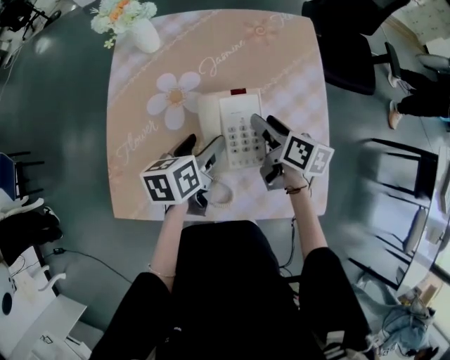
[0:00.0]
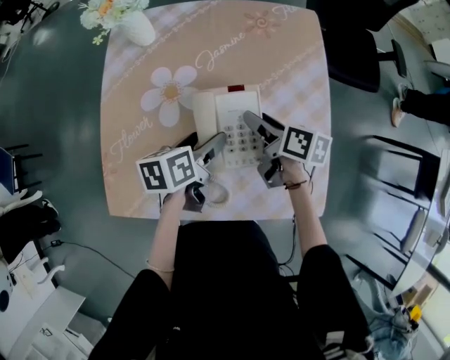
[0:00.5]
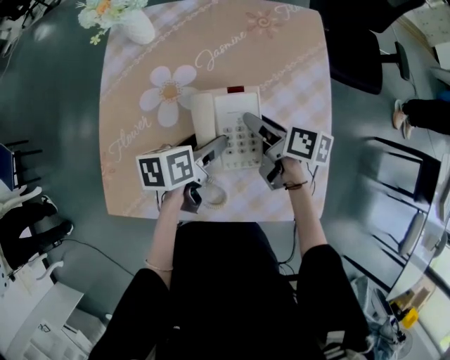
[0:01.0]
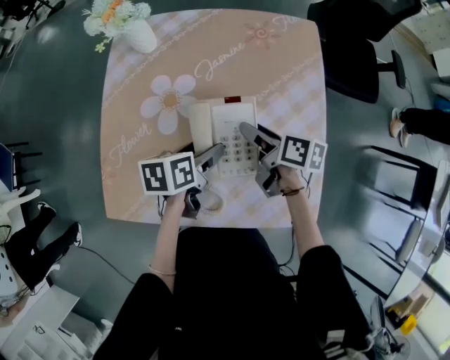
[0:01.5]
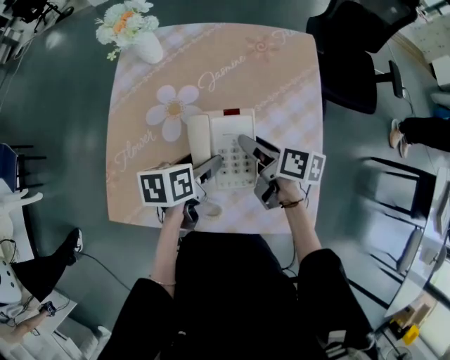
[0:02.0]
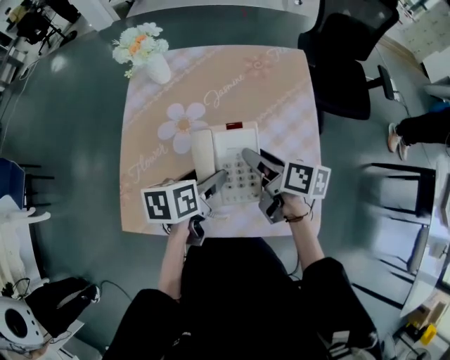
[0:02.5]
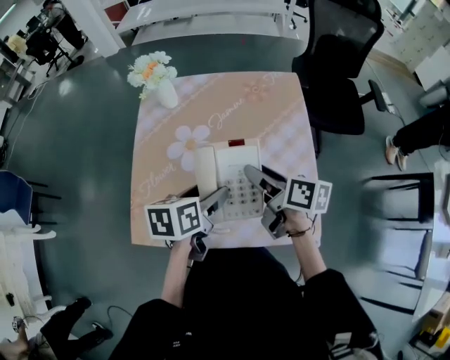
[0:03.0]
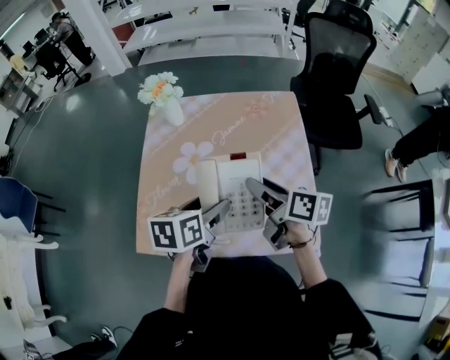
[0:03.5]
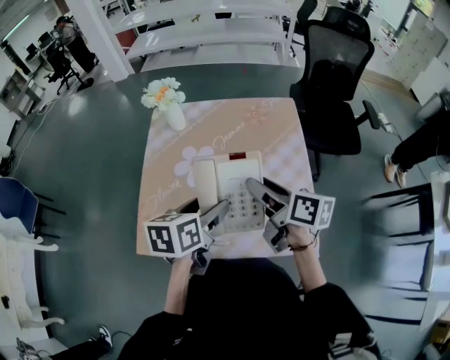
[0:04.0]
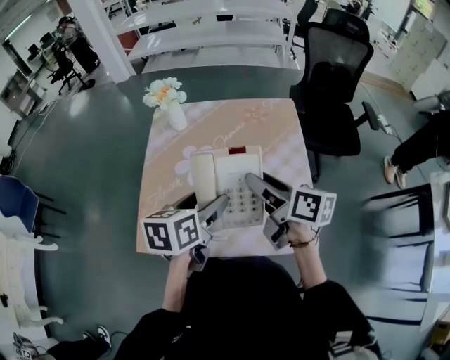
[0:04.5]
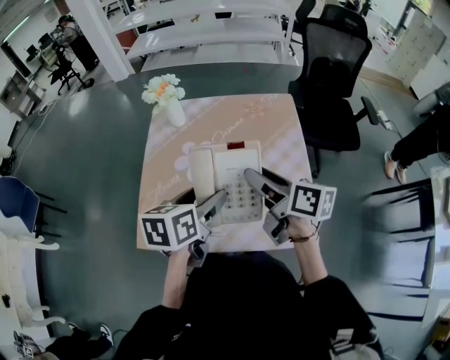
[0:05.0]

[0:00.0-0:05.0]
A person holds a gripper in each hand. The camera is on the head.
0:00.0 to 0:02.5: The right gripper moves upward, about 5 cm; the left gripper changes place by some 5 cm.
0:02.5 to 0:05.0: The grippers both shift upward by about 15 cm.

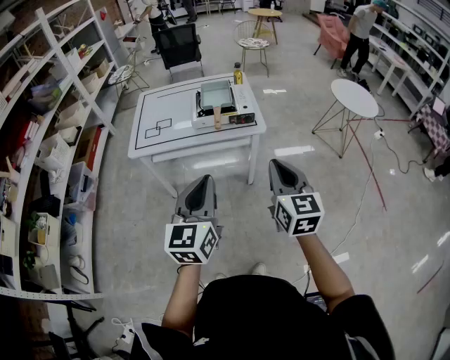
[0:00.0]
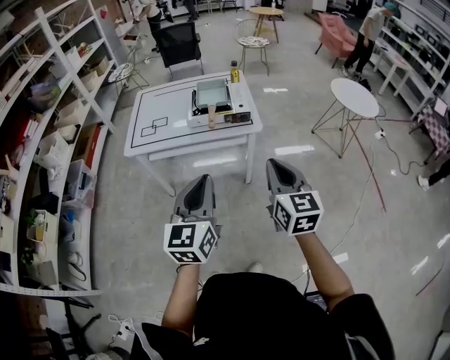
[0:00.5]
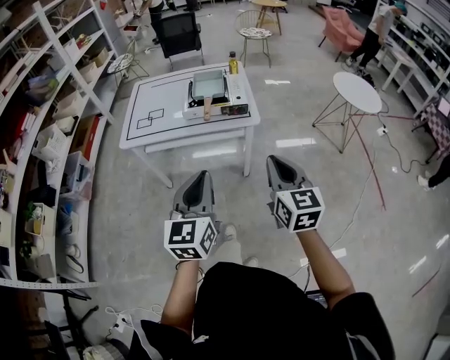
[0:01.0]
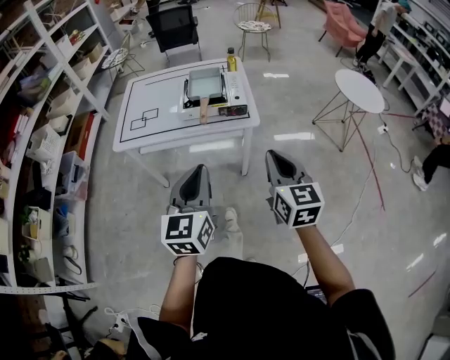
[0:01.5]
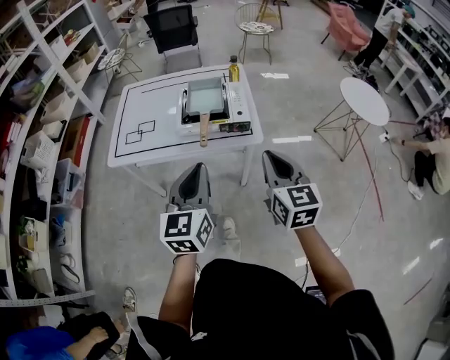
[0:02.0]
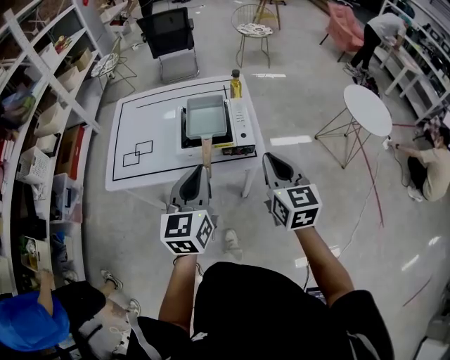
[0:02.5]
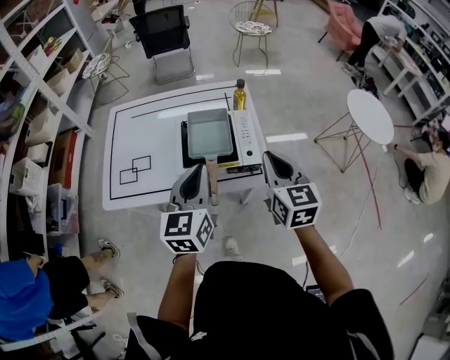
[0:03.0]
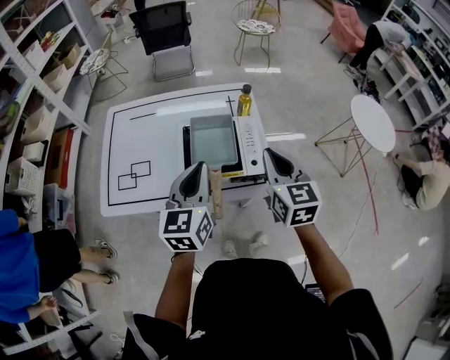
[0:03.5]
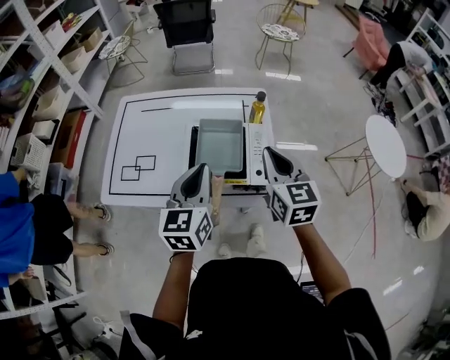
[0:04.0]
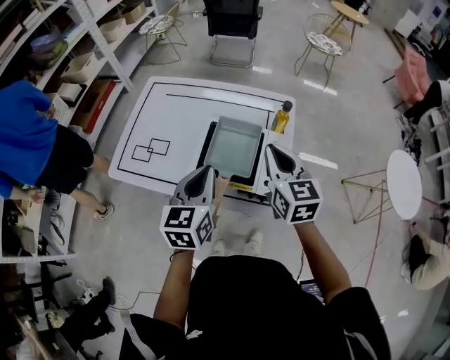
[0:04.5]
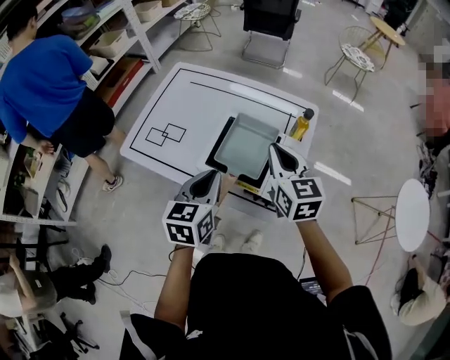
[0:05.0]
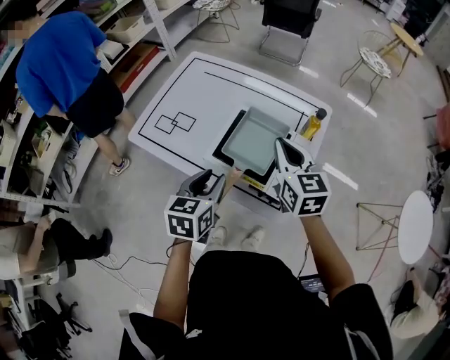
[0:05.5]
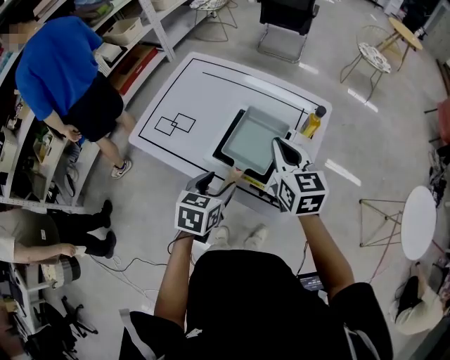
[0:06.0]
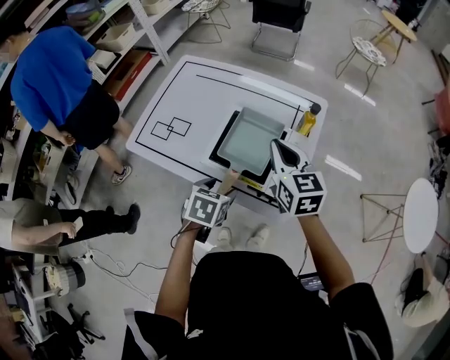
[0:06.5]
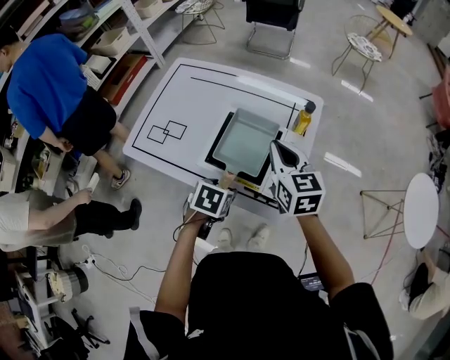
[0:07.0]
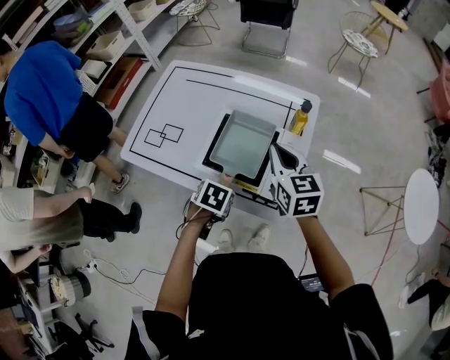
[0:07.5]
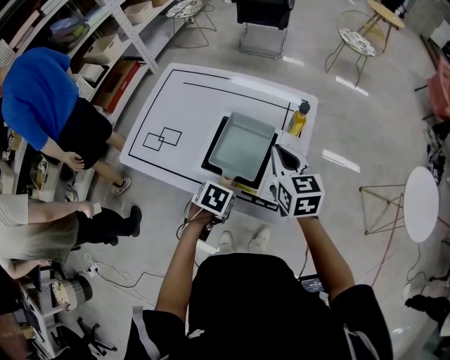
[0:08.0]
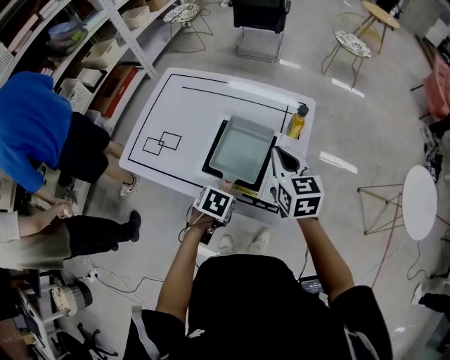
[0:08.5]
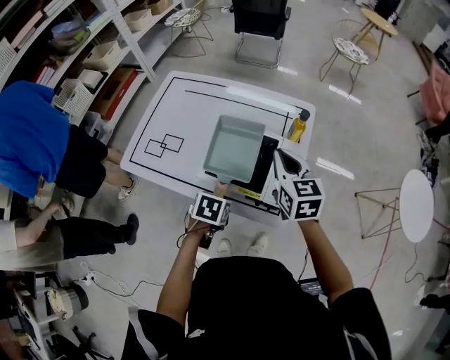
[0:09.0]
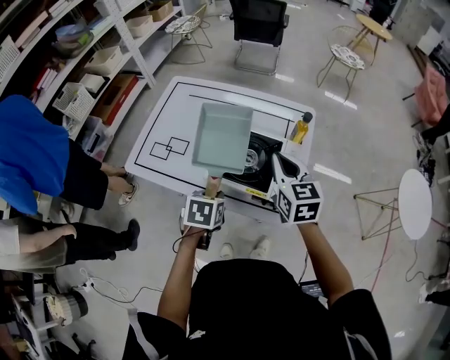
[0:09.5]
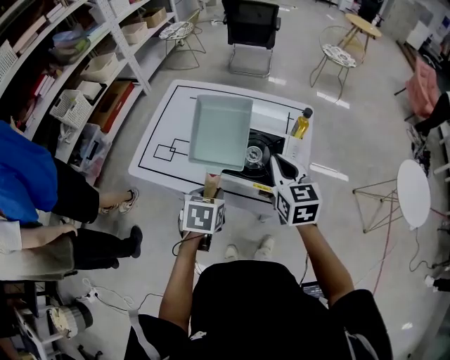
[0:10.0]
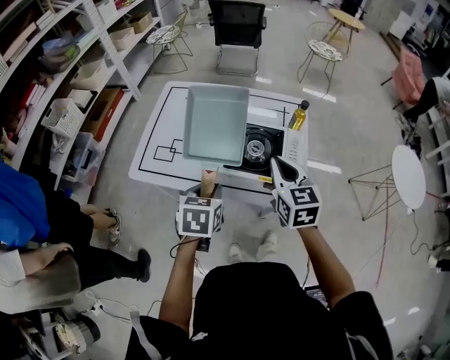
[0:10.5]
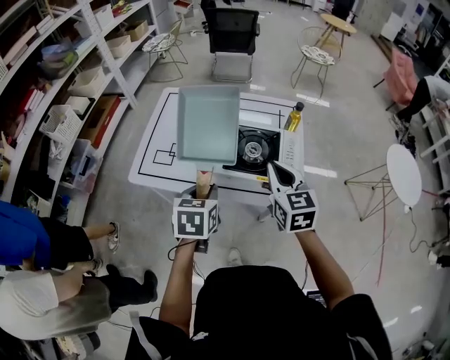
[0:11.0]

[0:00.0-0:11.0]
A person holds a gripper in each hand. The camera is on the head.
0:00.0 to 0:02.0: Both grippers travel together forward, some 20 cm.
0:02.0 to 0:03.5: Both grippers travel together forward, about 30 cm.
0:03.5 to 0:05.5: The left gripper is displaced downward by roughly 10 cm, turns by approximately 30 degrees, and opens. The right gripper moves about 15 cm, and swivels about 30 degrees.
0:05.5 to 0:07.5: The left gripper goes about 15 cm downward, points its fingers some 40 degrees further downward, and opens, then closes again.
0:07.5 to 0:09.0: There are only small adjustments of the grippers.
0:09.0 to 0:11.0: The left gripper shifts some 20 cm upward and to the left, and swivels some 30 degrees. Meanwhile the right gripper moves backward and to the left, roughly 15 cm.

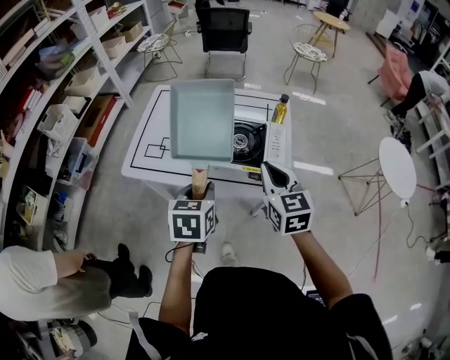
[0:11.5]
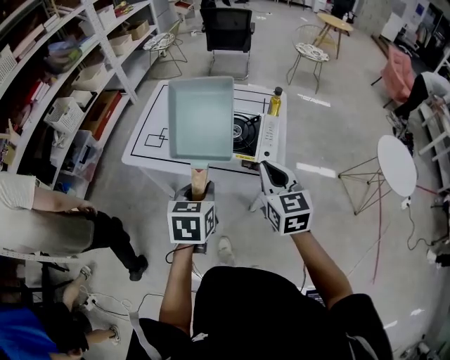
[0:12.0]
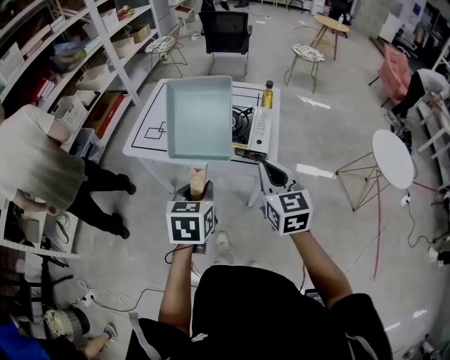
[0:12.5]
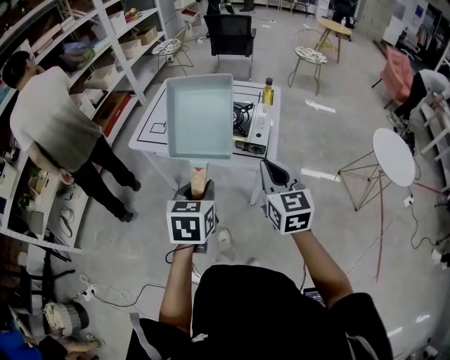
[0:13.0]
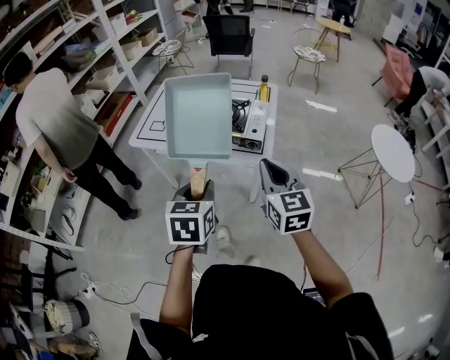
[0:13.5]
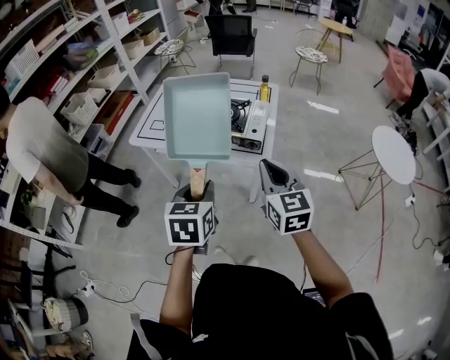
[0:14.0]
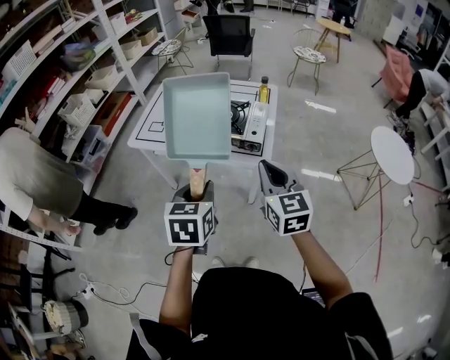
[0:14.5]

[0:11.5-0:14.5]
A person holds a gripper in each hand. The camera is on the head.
0:11.5 to 0:13.0: The grippers both shift backward by roughly 20 cm.
0:13.0 to 0:14.5: There are only small adjustments of the grippers.

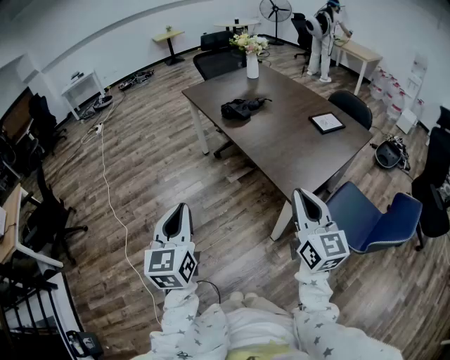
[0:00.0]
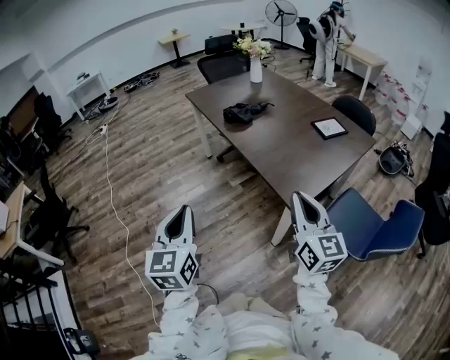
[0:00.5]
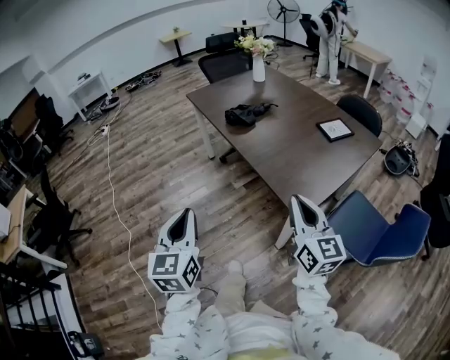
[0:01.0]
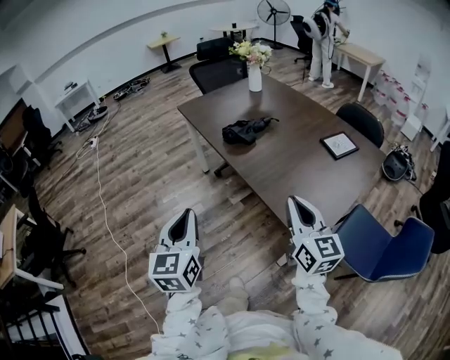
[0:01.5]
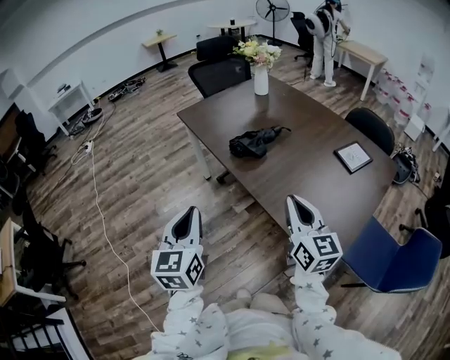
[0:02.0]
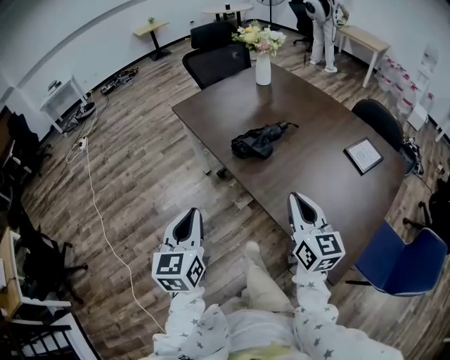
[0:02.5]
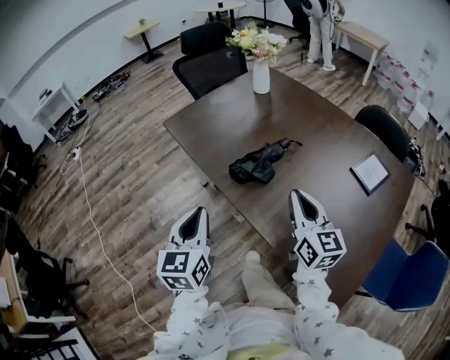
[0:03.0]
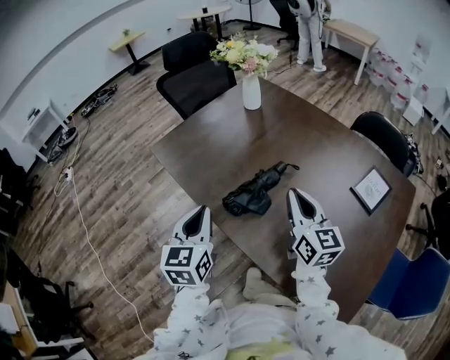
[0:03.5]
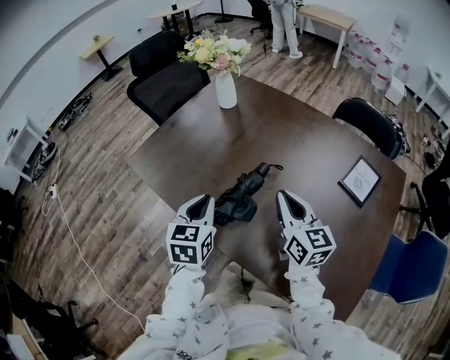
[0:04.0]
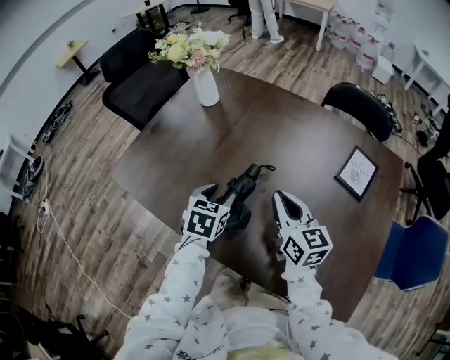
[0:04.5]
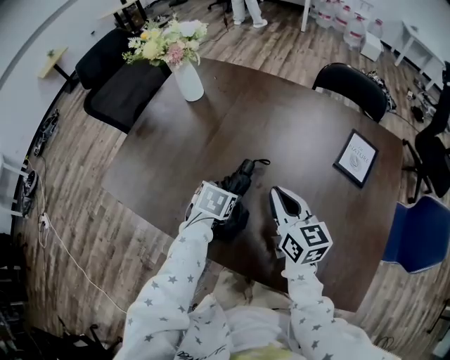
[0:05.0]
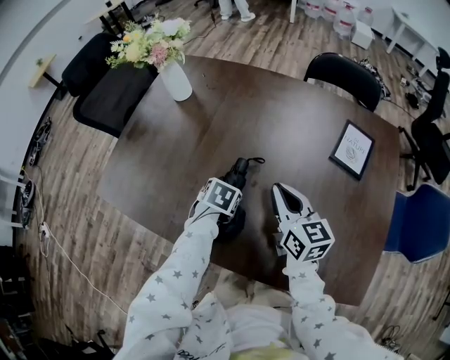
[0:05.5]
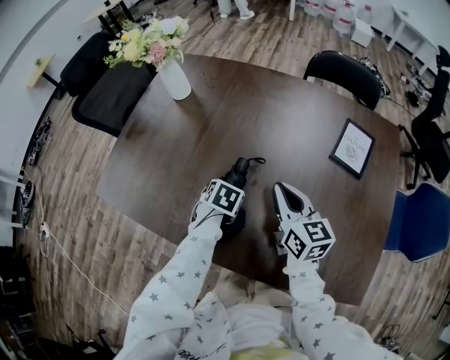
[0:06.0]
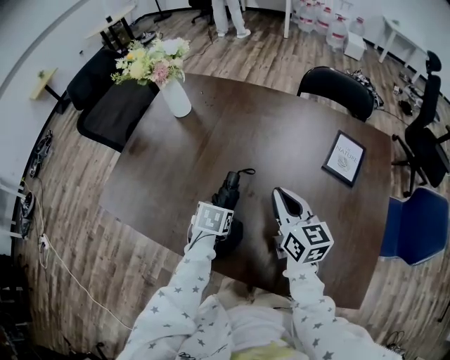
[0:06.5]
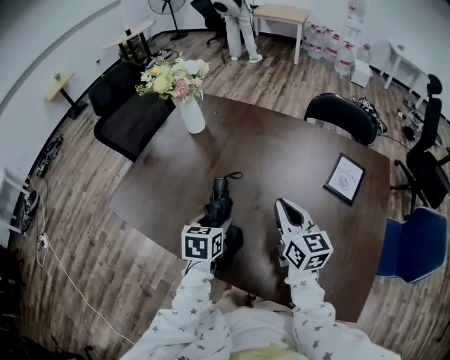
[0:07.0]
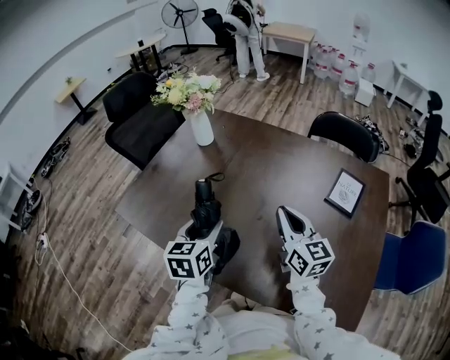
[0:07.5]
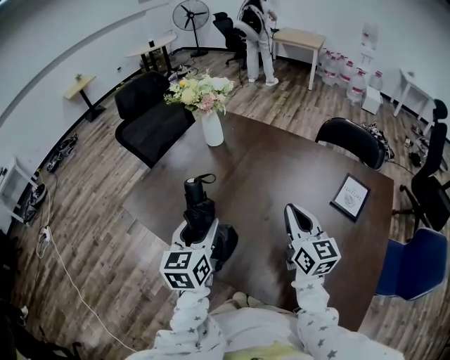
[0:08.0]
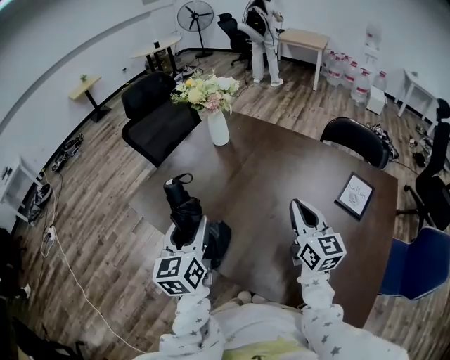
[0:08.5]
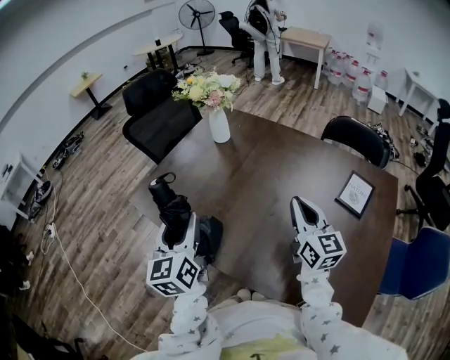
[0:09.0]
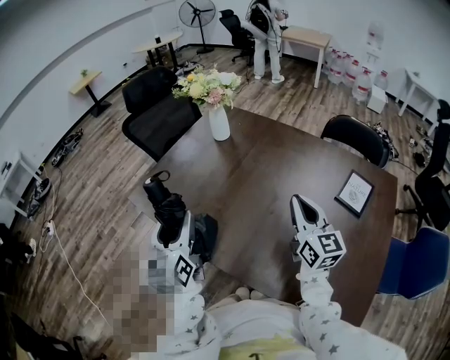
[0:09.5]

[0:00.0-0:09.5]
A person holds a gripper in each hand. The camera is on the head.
0:00.0 to 0:02.0: Both grippers move forward, some 30 cm.
0:02.0 to 0:04.0: The grippers both shift forward by approximately 35 cm. The left gripper changes its angle by approximately 30 degrees.
0:04.0 to 0:05.5: The right gripper heads downward, covering approximately 5 cm. Meanwhile the left gripper is displaced downward by some 20 cm, tilts its fingers about 40 degrees downward, and opens up.
0:05.5 to 0:07.5: The left gripper travels upward by approximately 20 cm, and tilts its fingers roughly 40 degrees upward; the right gripper goes about 10 cm upward.
0:07.5 to 0:09.5: The left gripper is displaced to the left and upward by roughly 15 cm, and swivels approximately 30 degrees.
